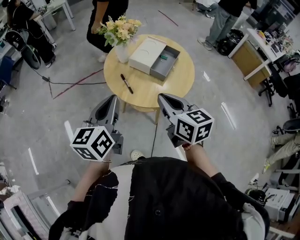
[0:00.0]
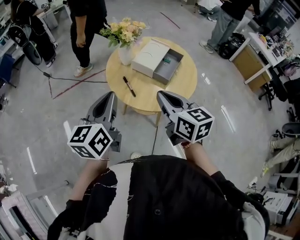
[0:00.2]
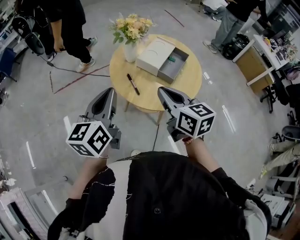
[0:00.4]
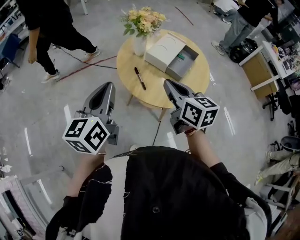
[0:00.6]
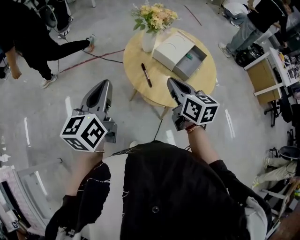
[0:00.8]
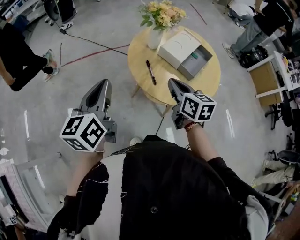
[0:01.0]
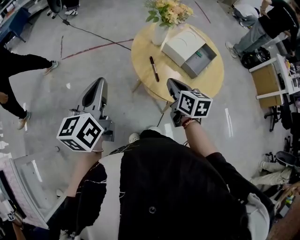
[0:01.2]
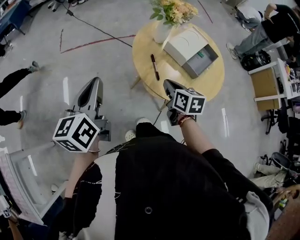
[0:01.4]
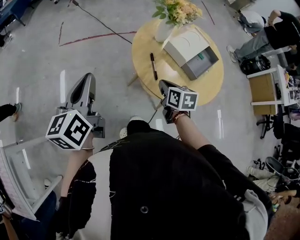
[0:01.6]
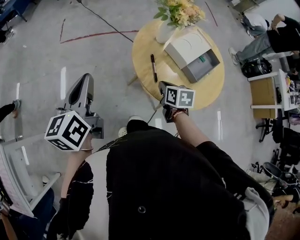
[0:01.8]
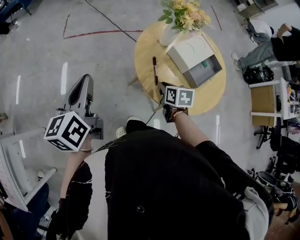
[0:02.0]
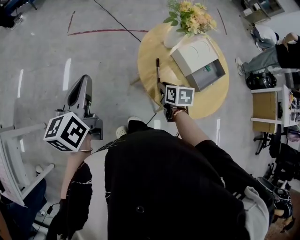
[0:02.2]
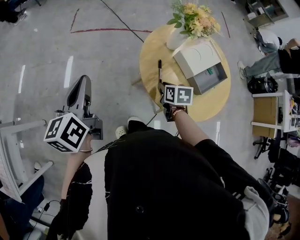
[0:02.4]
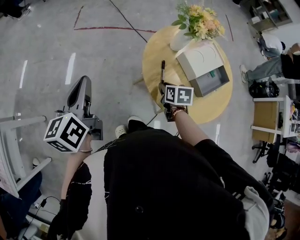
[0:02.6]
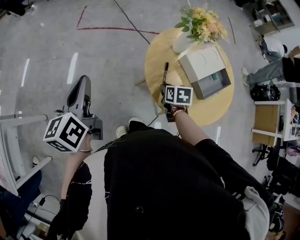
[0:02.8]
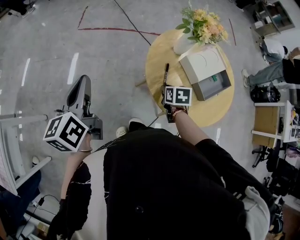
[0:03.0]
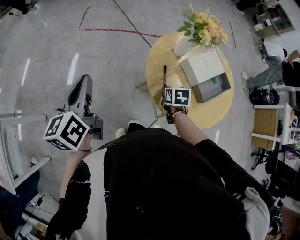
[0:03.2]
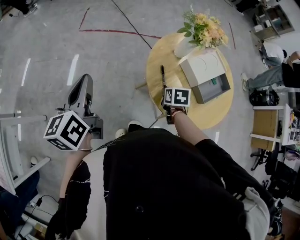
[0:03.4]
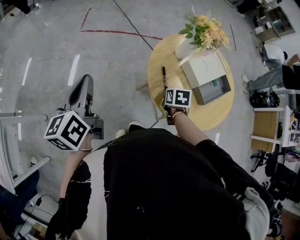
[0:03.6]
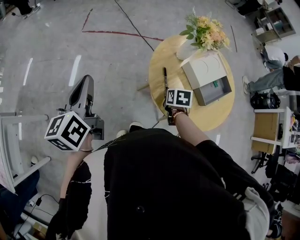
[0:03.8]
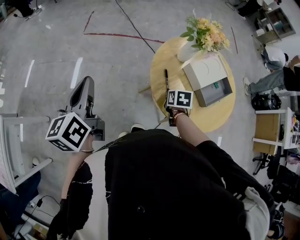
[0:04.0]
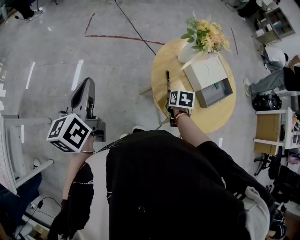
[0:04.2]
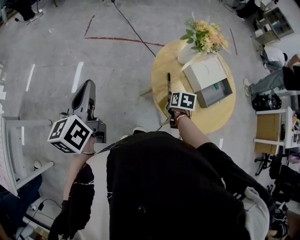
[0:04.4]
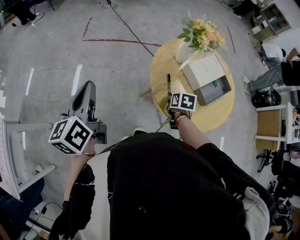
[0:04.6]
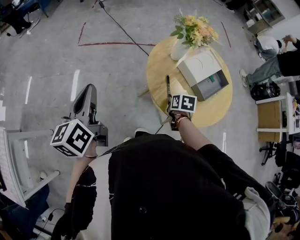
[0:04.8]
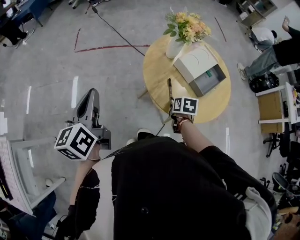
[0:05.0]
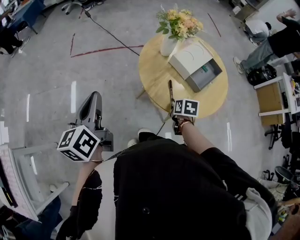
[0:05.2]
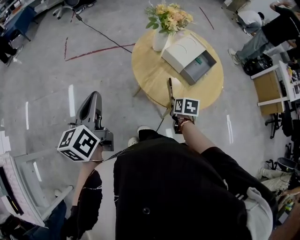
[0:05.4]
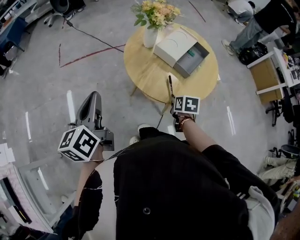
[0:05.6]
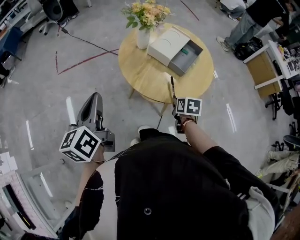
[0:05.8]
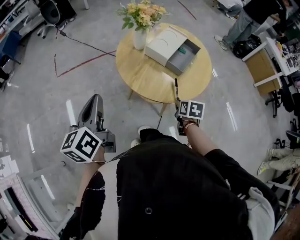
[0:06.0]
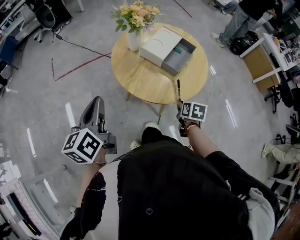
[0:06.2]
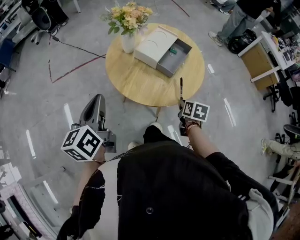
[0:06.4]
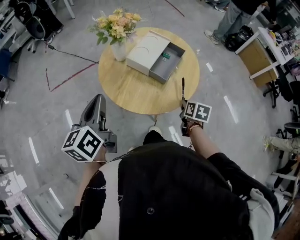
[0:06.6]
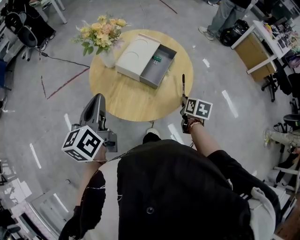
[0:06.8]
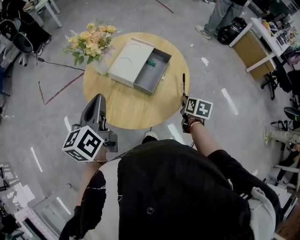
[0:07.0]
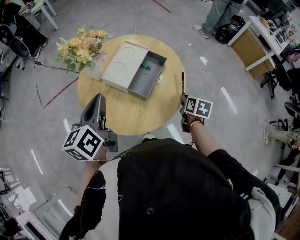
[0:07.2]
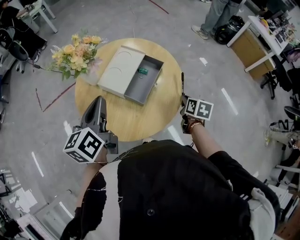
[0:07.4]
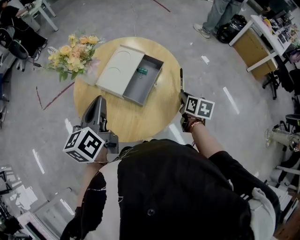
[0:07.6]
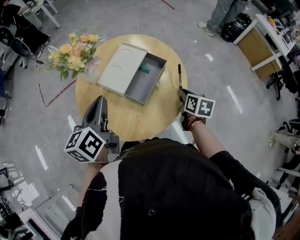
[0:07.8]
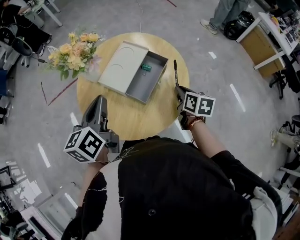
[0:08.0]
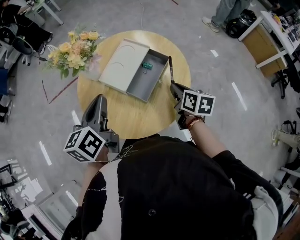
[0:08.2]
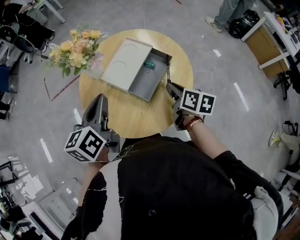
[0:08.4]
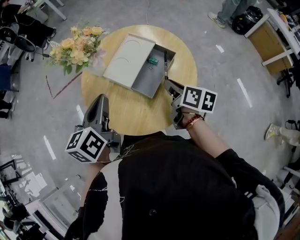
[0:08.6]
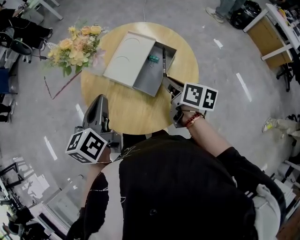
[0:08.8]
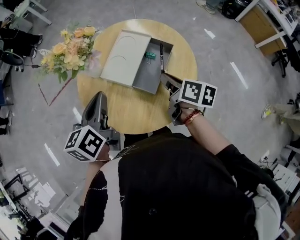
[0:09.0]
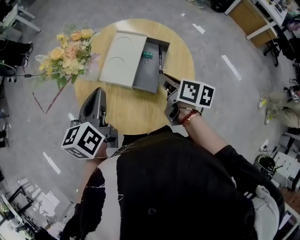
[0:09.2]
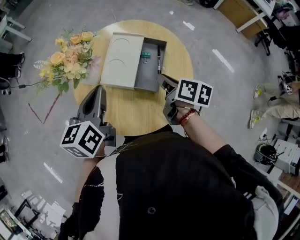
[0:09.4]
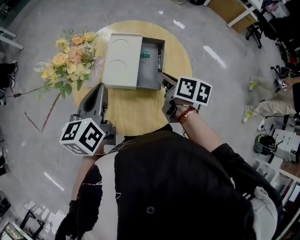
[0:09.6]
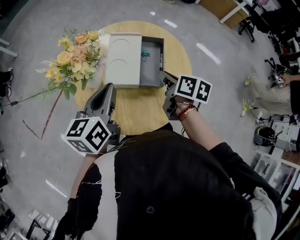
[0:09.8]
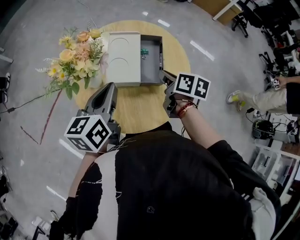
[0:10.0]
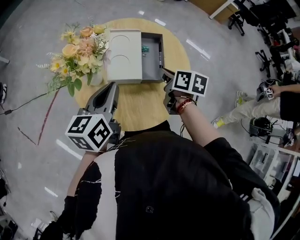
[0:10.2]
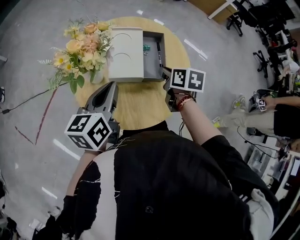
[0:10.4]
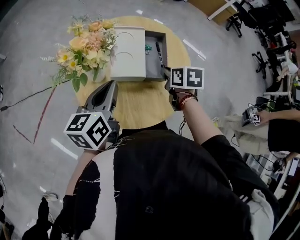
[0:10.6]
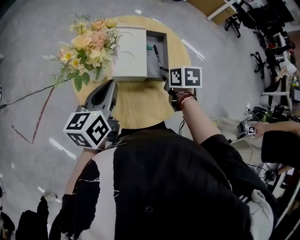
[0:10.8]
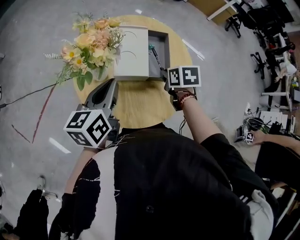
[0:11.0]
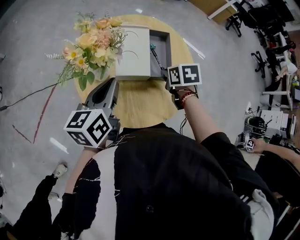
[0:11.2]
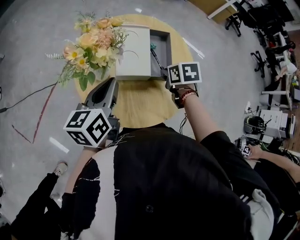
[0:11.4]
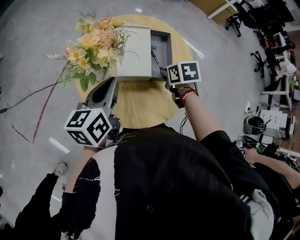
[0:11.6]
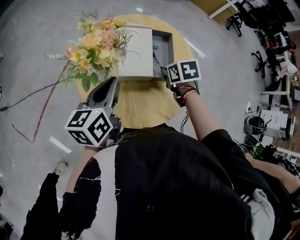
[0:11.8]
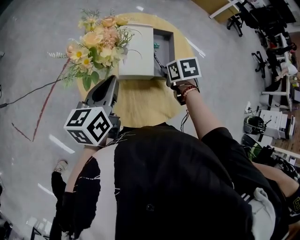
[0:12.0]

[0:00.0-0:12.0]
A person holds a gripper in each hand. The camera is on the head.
0:00.0 to 0:01.6: The right gripper moves downward and forward, roughly 25 cm, and rotates roughly 30 degrees. The left gripper goes approximately 20 cm to the left, and rotates some 30 degrees.
0:01.6 to 0:03.0: The right gripper travels downward by some 5 cm, swivels about 20 degrees, and opens.
0:03.0 to 0:04.4: There are only small adjustments of the grippers.
0:04.4 to 0:06.0: The right gripper moves some 20 cm, and rotates approximately 30 degrees, while the left gripper changes place by about 15 cm, and changes its angle by roughly 20 degrees.
0:06.0 to 0:07.6: The left gripper heads forward and to the right, covering roughly 30 cm. The right gripper goes some 25 cm to the right and forward.
0:07.6 to 0:09.0: The right gripper heads to the left and upward, covering roughly 15 cm, and swivels about 30 degrees.
0:09.0 to 0:10.4: The right gripper turns by roughly 30 degrees. The left gripper changes place by some 5 cm, and rotates roughly 40 degrees.
0:10.4 to 0:12.0: The right gripper rotates approximately 30 degrees.

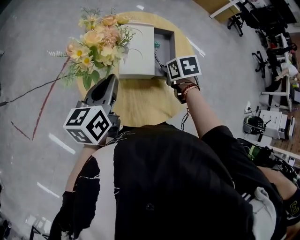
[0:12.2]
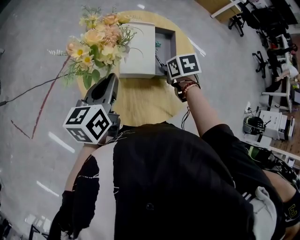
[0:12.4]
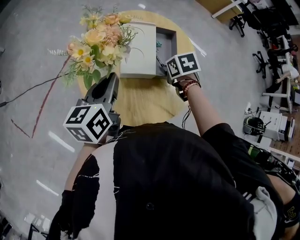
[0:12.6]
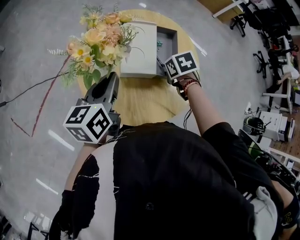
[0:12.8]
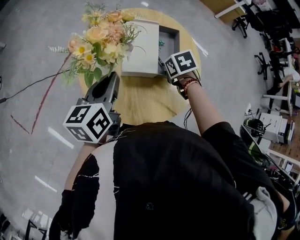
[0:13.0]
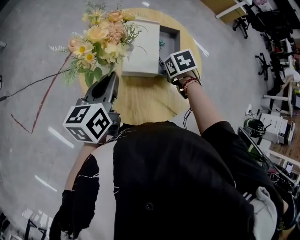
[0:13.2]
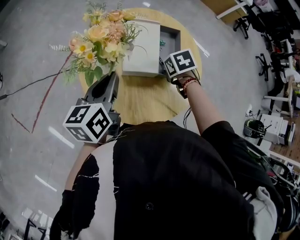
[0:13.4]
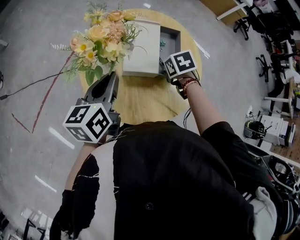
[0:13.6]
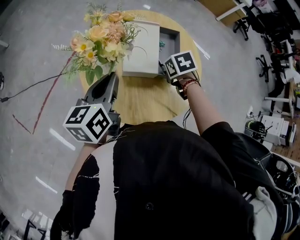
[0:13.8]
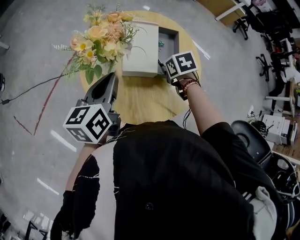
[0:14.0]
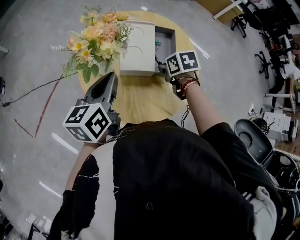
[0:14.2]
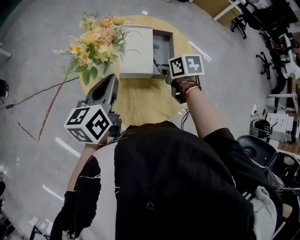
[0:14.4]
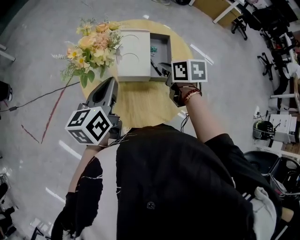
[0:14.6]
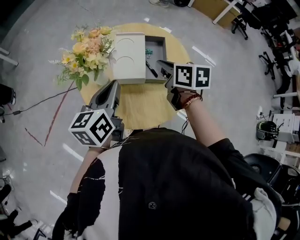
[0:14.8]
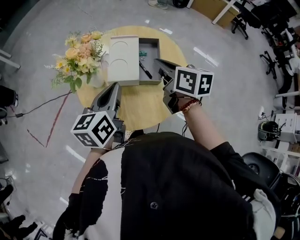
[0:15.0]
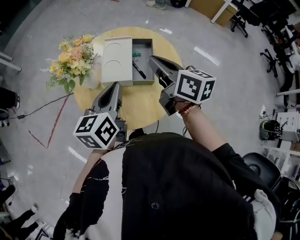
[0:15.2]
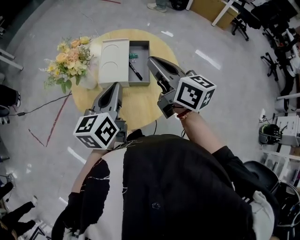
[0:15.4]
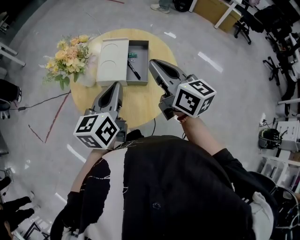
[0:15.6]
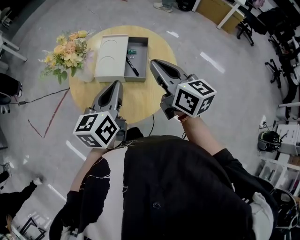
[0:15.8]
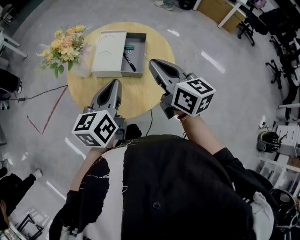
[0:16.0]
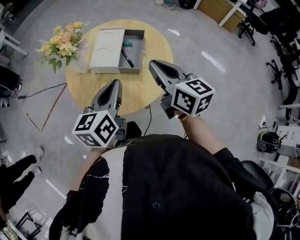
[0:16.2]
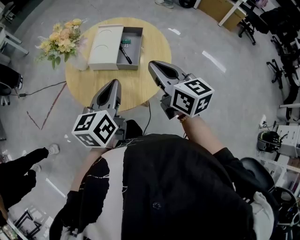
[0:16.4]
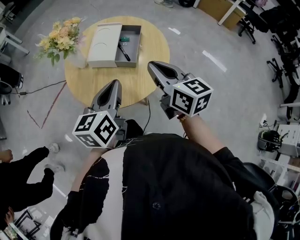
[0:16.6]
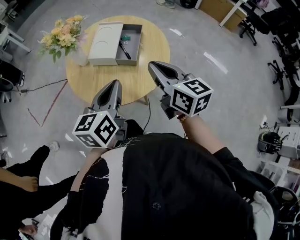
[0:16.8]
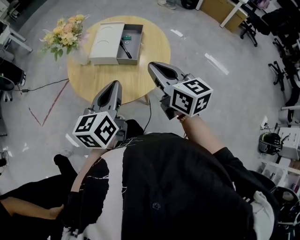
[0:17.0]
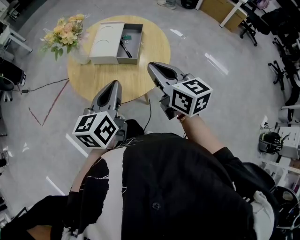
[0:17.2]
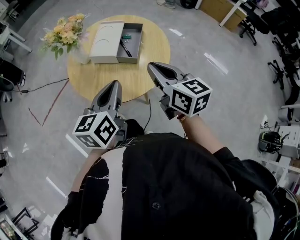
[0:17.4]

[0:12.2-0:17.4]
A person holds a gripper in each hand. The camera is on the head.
0:12.2 to 0:14.0: There are only small adjustments of the grippers.
0:14.0 to 0:15.6: The left gripper moves to the right, upward and backward, some 20 cm; the right gripper is displaced upward by roughly 25 cm, and tips its fingers upward by approximately 70 degrees.
0:15.6 to 0:17.4: Both grippers move backward, some 10 cm.

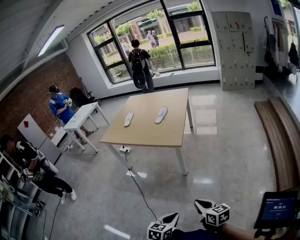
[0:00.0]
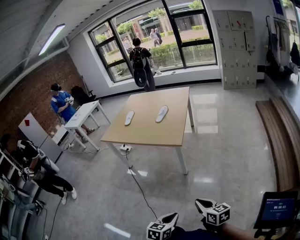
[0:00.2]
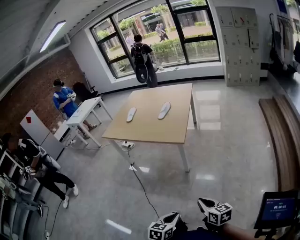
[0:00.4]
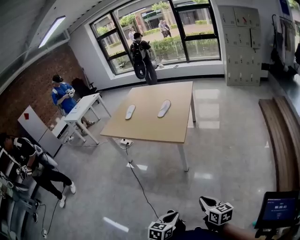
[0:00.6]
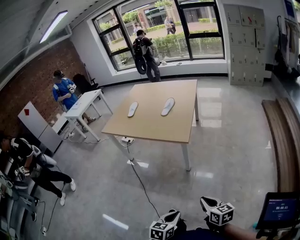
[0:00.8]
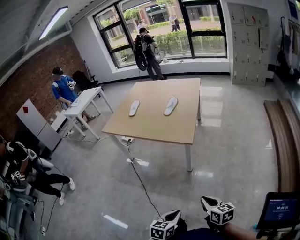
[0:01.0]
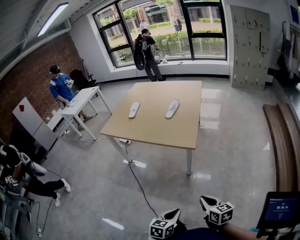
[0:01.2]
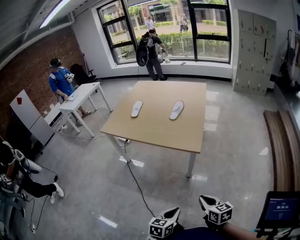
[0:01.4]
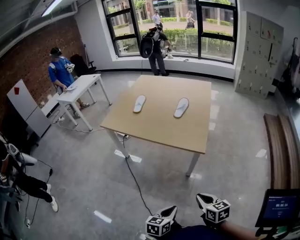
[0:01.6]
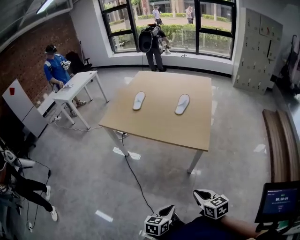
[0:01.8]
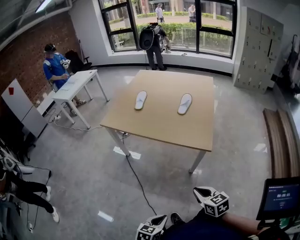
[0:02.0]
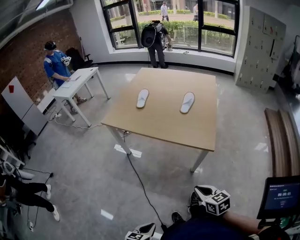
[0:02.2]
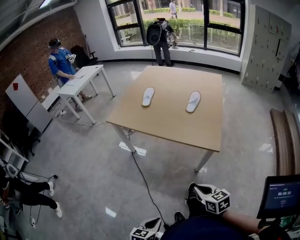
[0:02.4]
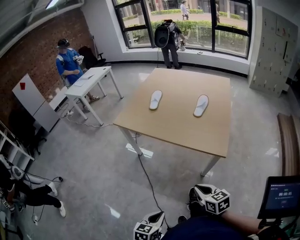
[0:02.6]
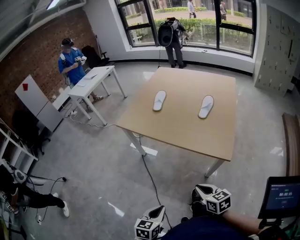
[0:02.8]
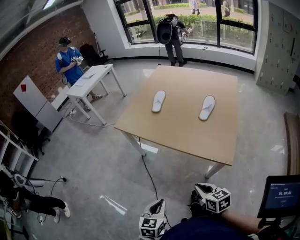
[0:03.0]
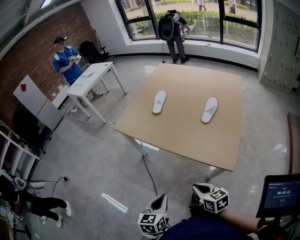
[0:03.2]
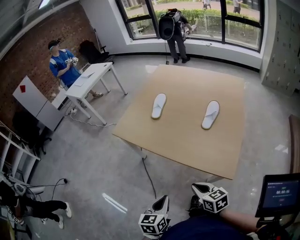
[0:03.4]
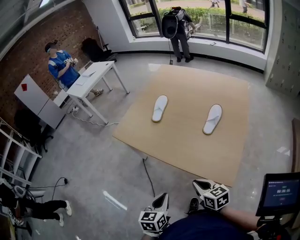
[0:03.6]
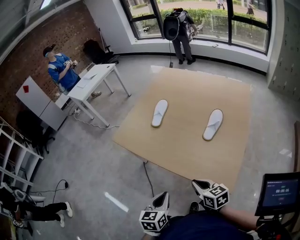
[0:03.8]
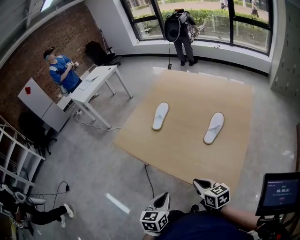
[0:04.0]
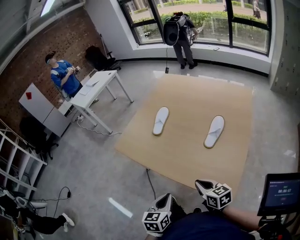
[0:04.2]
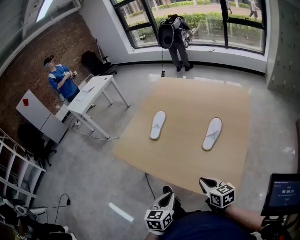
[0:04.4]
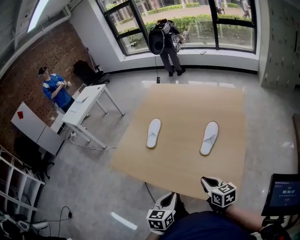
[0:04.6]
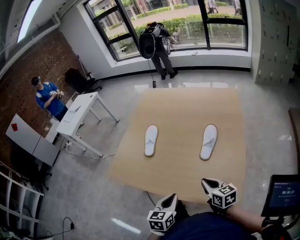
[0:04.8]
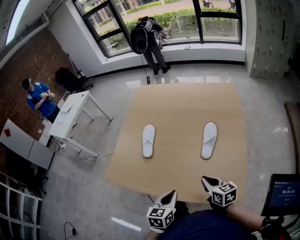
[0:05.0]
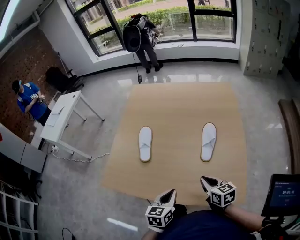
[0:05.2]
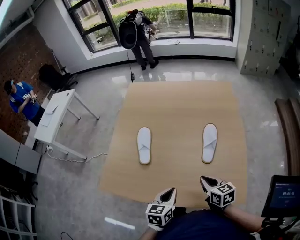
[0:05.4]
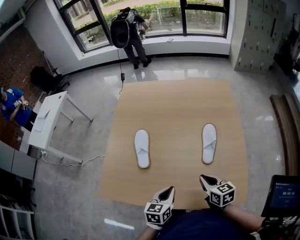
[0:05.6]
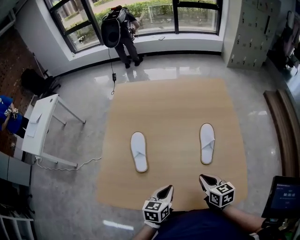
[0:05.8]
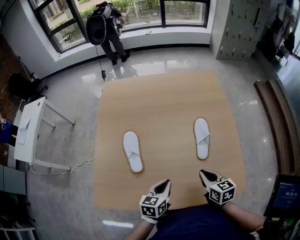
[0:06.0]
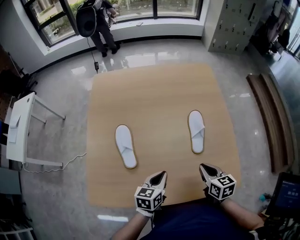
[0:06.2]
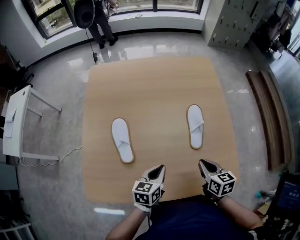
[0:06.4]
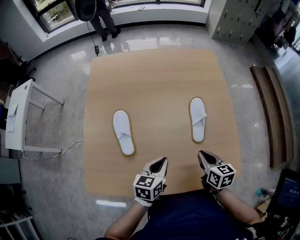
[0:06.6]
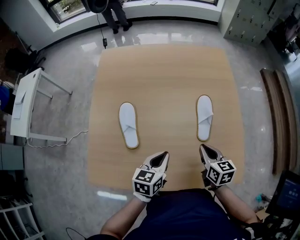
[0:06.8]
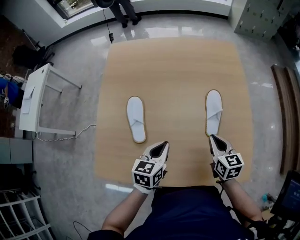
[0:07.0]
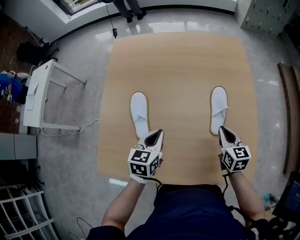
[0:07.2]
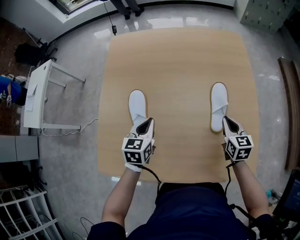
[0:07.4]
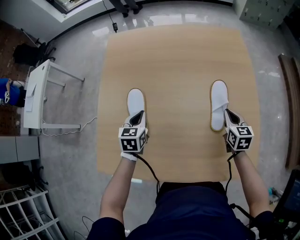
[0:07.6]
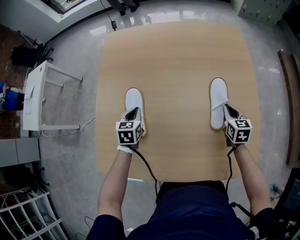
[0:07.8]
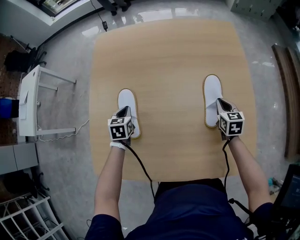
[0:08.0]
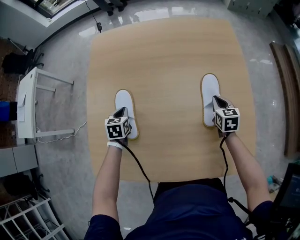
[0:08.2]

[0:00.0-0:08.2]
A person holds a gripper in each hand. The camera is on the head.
0:00.0 to 0:01.6: The grippers both shift forward and to the left by about 25 cm.
0:01.6 to 0:03.2: The grippers both shift forward and to the left by roughly 25 cm. The left gripper changes its angle by roughly 20 degrees.
0:03.2 to 0:05.0: The right gripper is displaced forward and to the right by about 30 cm. Meanwhile the left gripper shifts approximately 30 cm forward.
0:05.0 to 0:06.6: The left gripper shifts by roughly 15 cm, and changes its angle by about 20 degrees; the right gripper ends up roughly 10 cm from where it was, and rotates approximately 30 degrees.
0:06.6 to 0:08.2: The right gripper travels forward and downward by approximately 20 cm. The left gripper is displaced to the left, forward and downward by roughly 30 cm, and swivels about 40 degrees.
